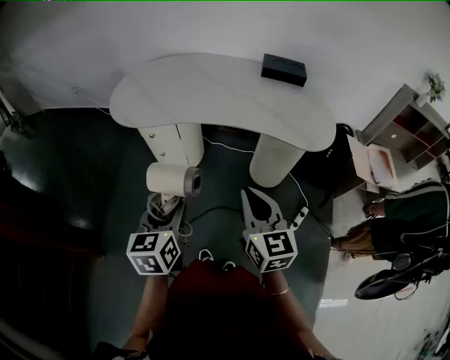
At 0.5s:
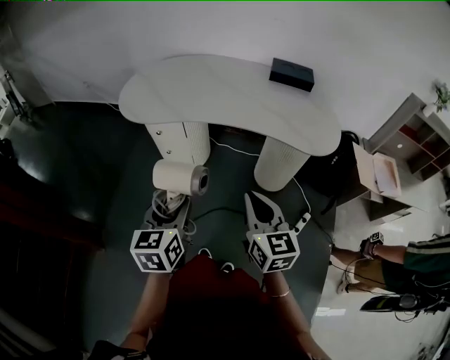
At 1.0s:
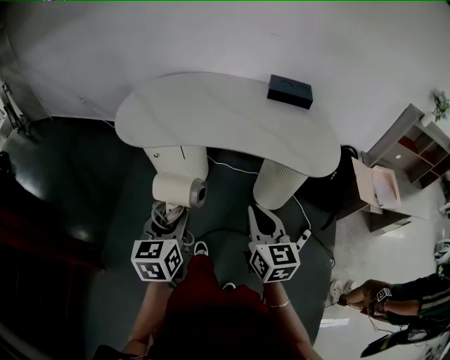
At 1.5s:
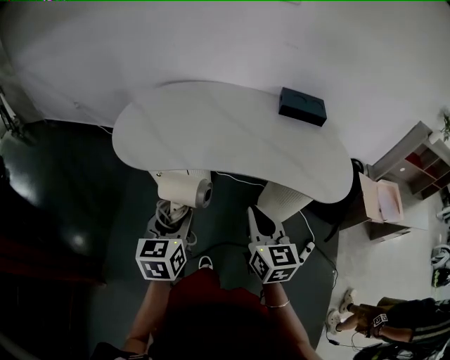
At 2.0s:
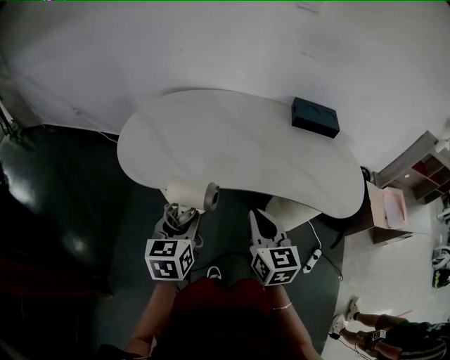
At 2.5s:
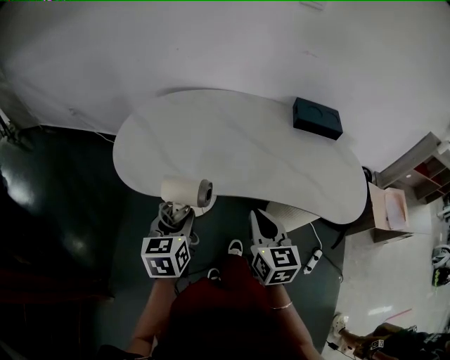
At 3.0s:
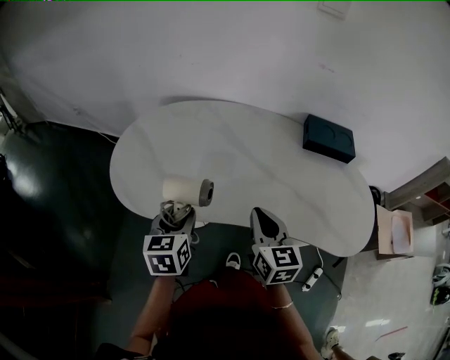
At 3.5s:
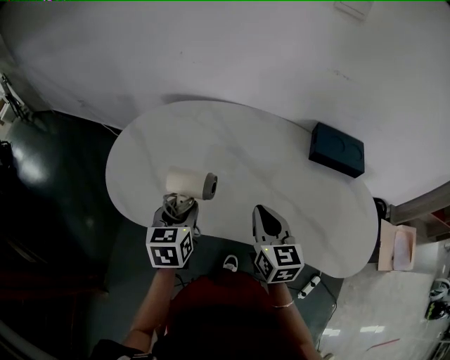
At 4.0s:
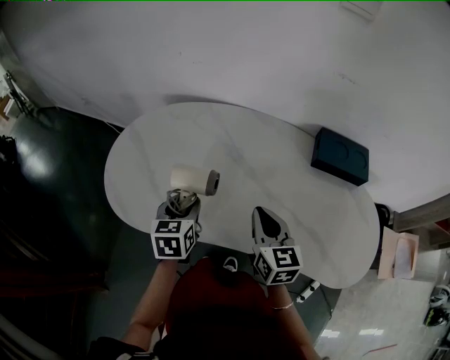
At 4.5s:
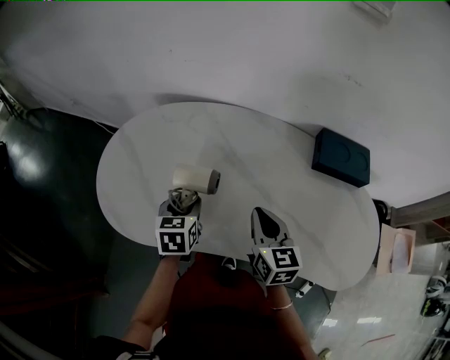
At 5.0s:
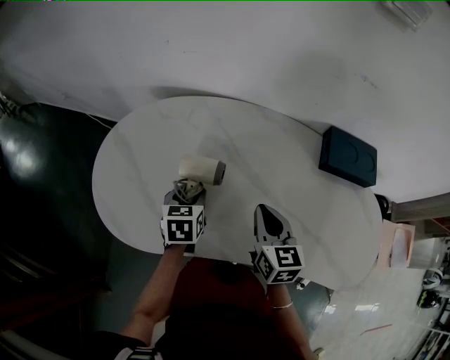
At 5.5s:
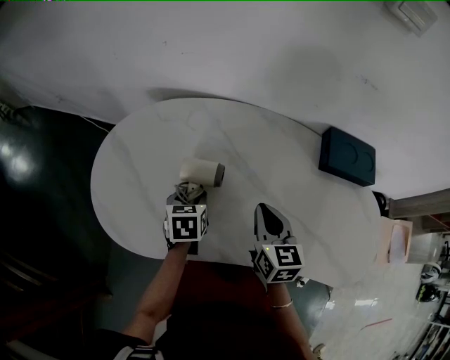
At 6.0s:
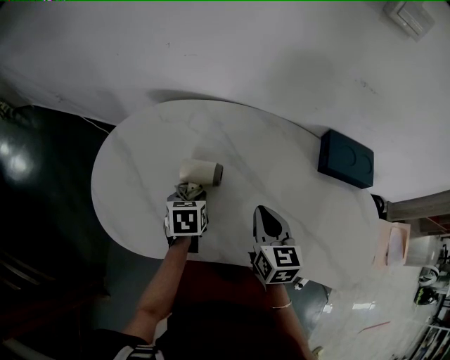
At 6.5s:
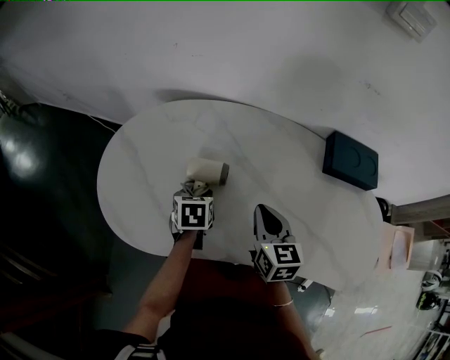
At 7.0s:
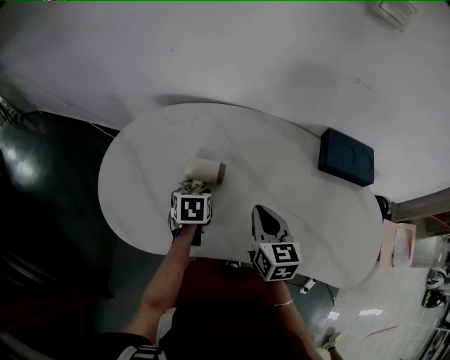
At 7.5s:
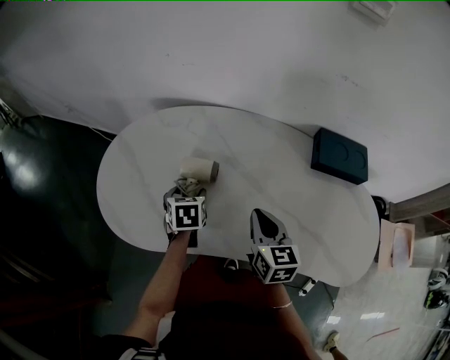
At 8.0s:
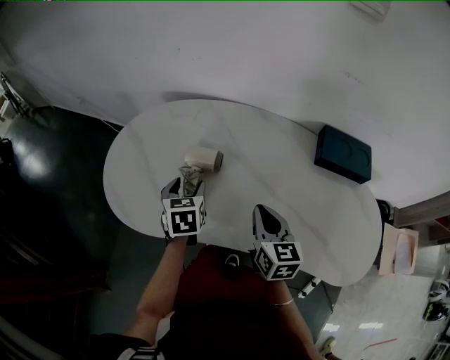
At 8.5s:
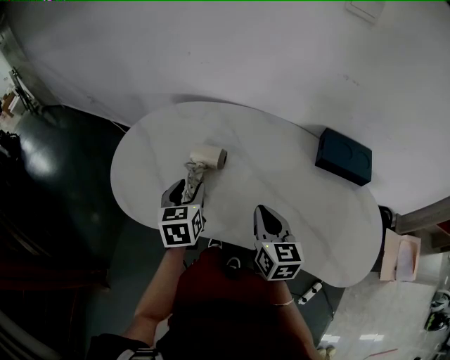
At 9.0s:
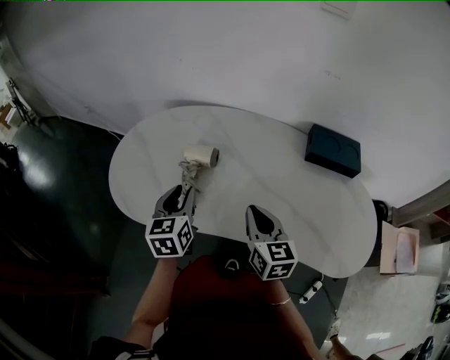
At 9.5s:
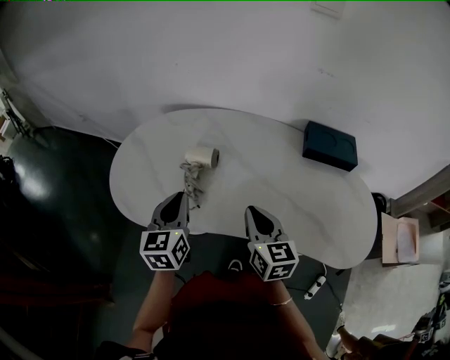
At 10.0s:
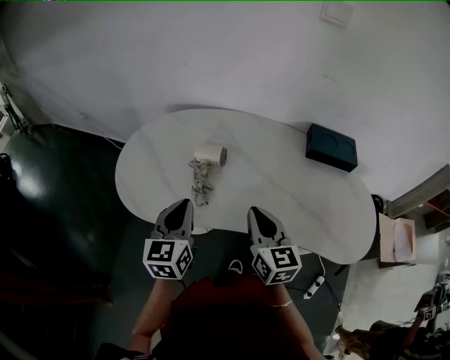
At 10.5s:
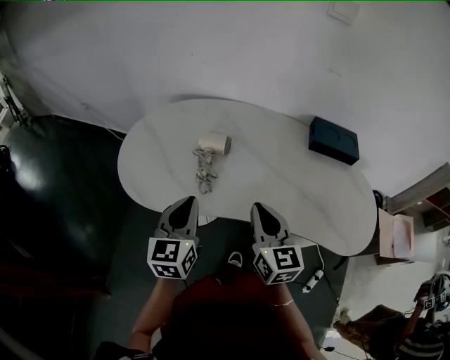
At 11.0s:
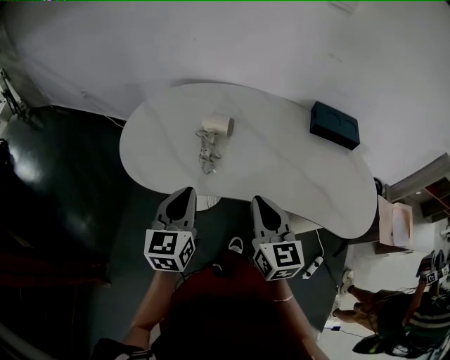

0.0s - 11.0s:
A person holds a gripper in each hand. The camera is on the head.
0.0s - 2.0s: The two grippers go approximately 25 cm forward.
2.0s - 3.5s: The grippers both shift forward by about 20 cm.
3.5s - 5.5s: The right gripper goes approximately 10 cm forward. Meanwhile the left gripper heads forward and downward, covering approximately 15 cm.
5.5s - 7.5s: The grippers make only small movements.
7.5s - 9.0s: The right gripper heads backward, covering about 5 cm, while the left gripper travels upward and backward by some 15 cm, swivels some 30 degrees, and closes its fingers.
9.0s - 11.0s: Both grippers move backward and to the left, some 15 cm. The left gripper closes its fingers.

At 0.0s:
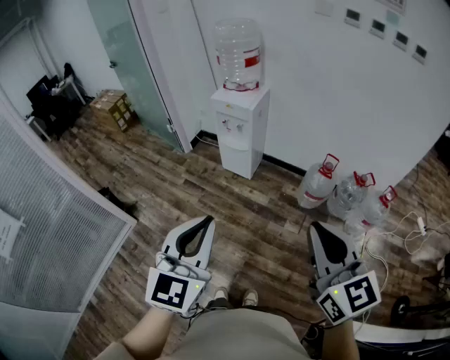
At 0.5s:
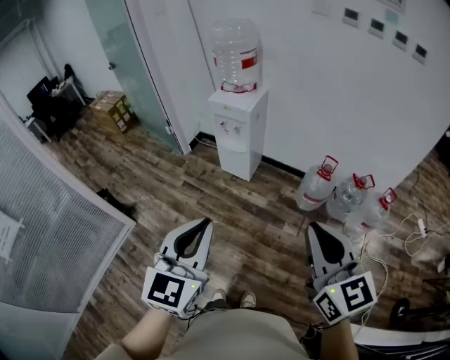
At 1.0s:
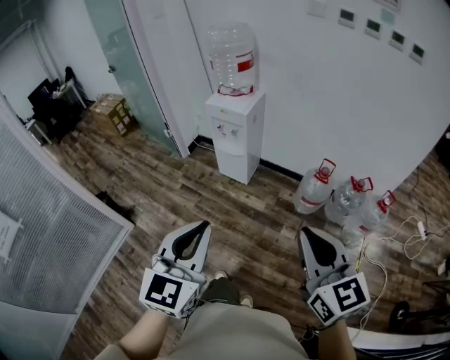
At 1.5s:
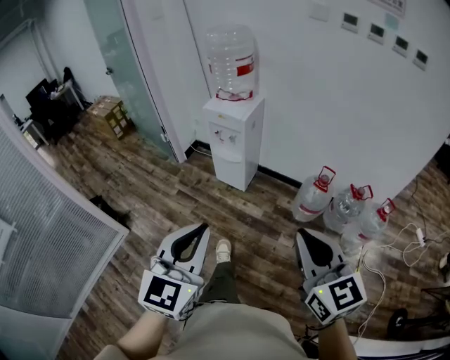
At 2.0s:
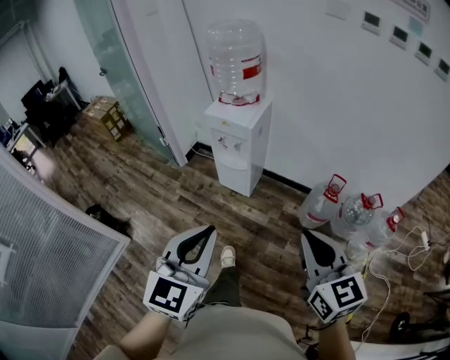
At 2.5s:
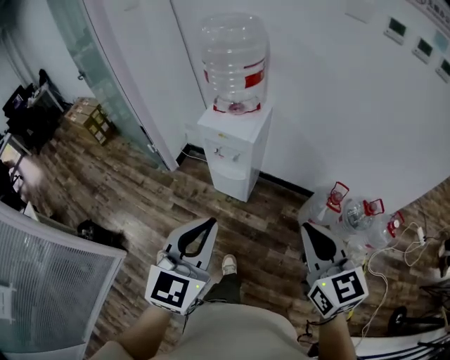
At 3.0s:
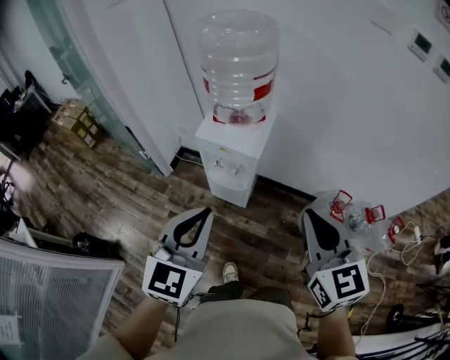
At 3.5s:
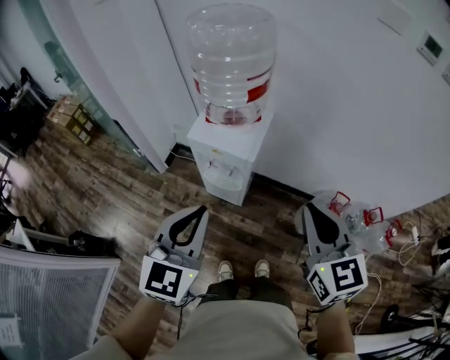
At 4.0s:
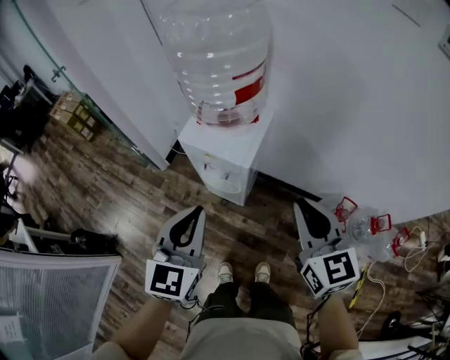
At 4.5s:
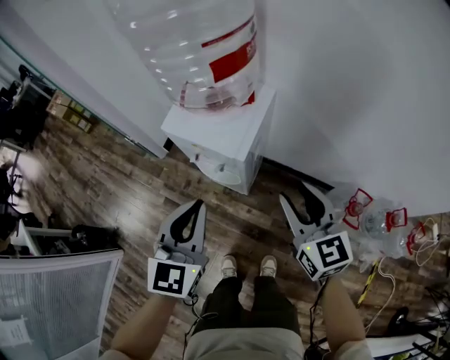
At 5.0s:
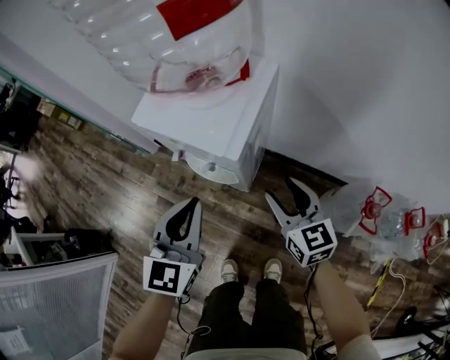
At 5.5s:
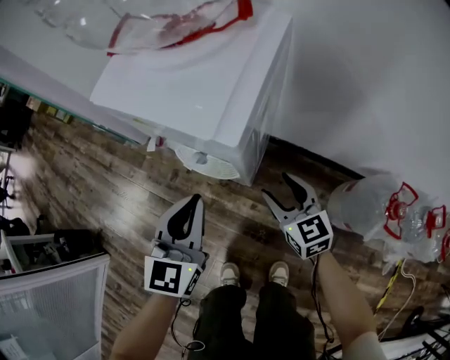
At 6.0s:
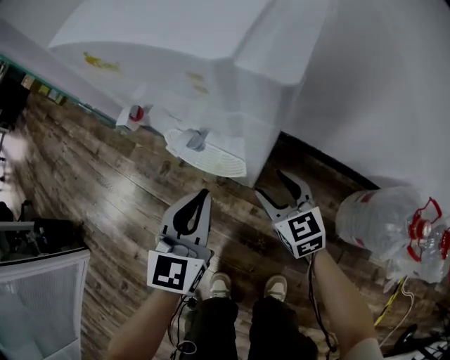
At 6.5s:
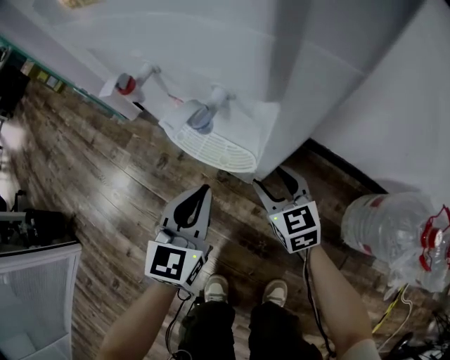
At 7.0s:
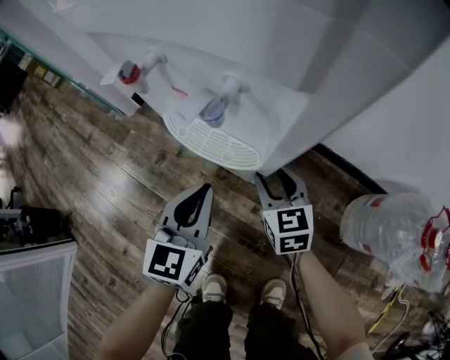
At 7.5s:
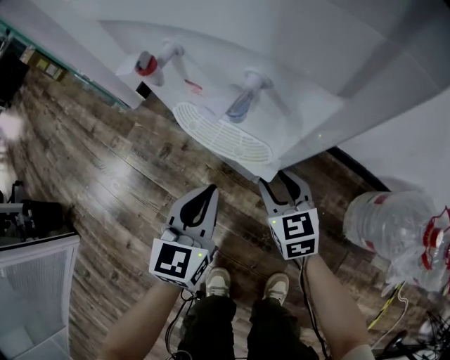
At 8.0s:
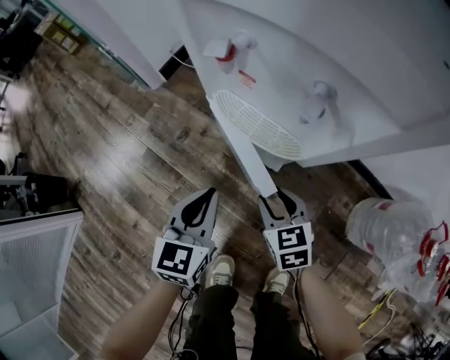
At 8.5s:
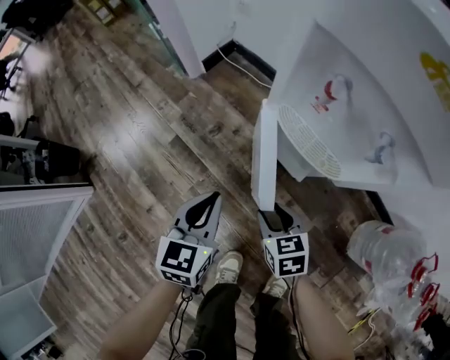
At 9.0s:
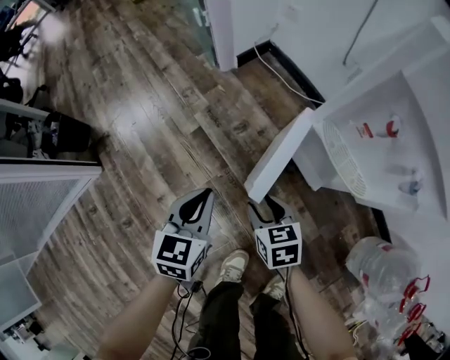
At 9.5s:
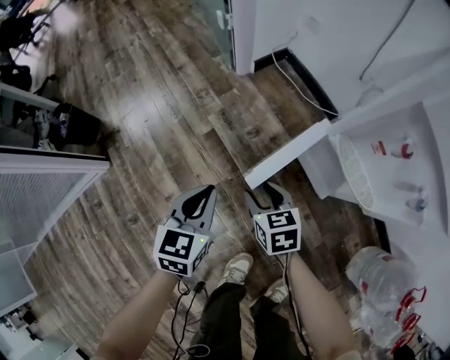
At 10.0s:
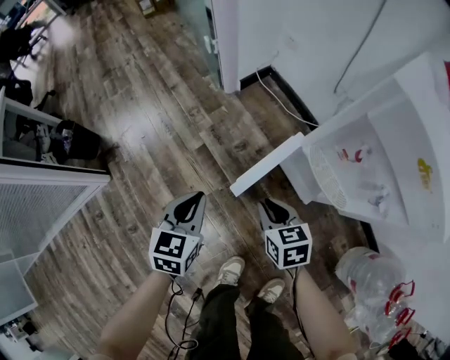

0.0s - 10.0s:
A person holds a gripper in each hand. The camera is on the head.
0.0s - 2.0s: The right gripper shifts about 20 cm forward and downward; the left gripper shifts approximately 15 cm forward.
2.0s - 4.0s: The two grippers travel together, forward, approximately 40 cm.
4.0s - 6.0s: Both grippers travel together downward, some 60 cm. The right gripper turns by some 20 degrees, and opens up.
6.0s - 8.0s: The left gripper heads to the left and downward, covering about 15 cm. Meanwhile the right gripper moves to the left, downward and backward, approximately 15 cm.
8.0s - 10.0s: The right gripper heads to the left, upward and forward, covering about 25 cm, and closes up. Meanwhile the left gripper moves to the left, roughly 25 cm, and turns by some 20 degrees.

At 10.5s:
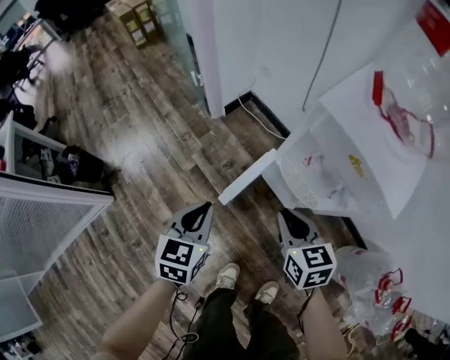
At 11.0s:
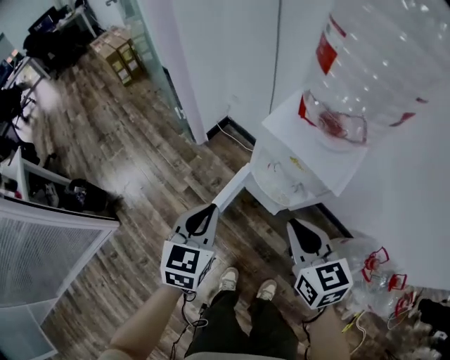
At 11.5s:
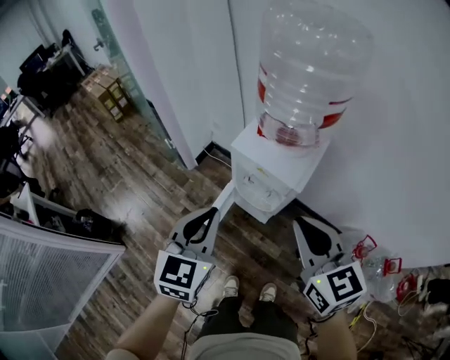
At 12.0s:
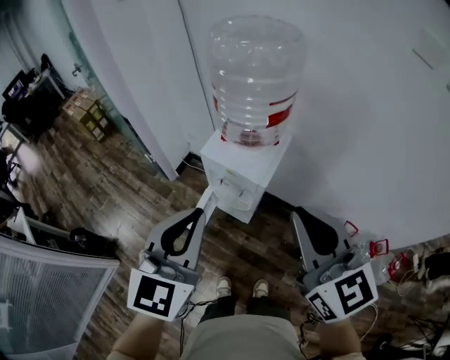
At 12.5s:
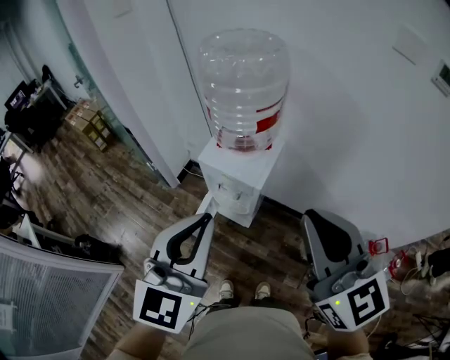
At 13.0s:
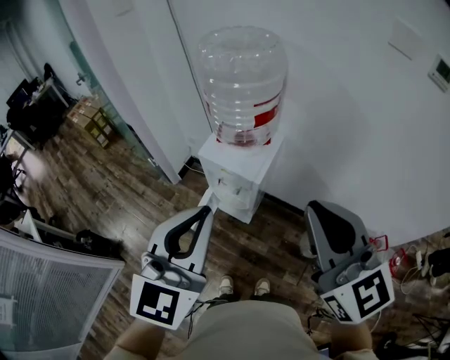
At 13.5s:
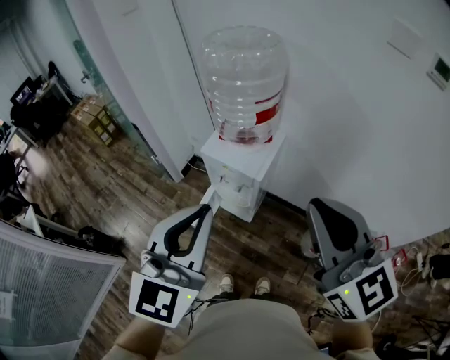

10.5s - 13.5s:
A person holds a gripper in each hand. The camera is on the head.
10.5s - 12.0s: The grippers both shift upward by approximately 50 cm. The left gripper turns by some 40 degrees. Meanwhile the right gripper rotates about 40 degrees.
12.0s - 13.5s: The grippers both shift upward and backward by some 10 cm.

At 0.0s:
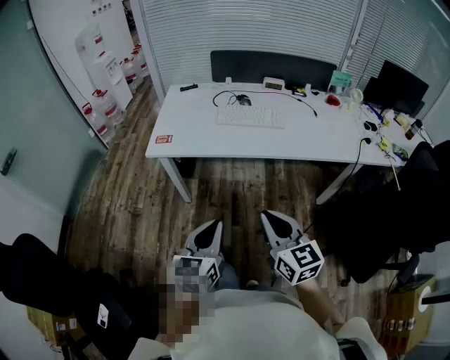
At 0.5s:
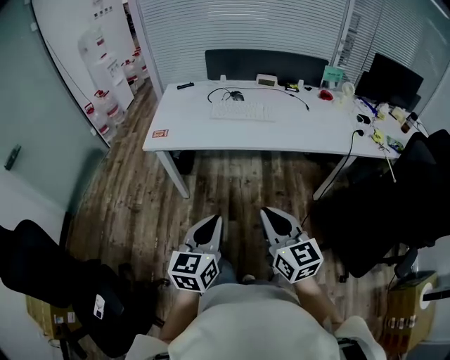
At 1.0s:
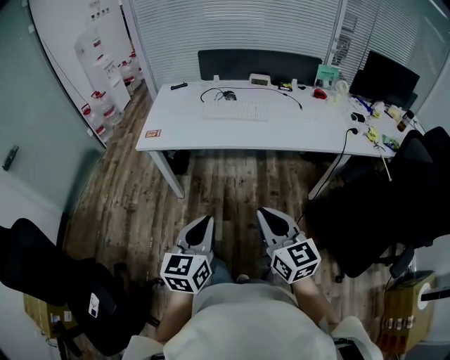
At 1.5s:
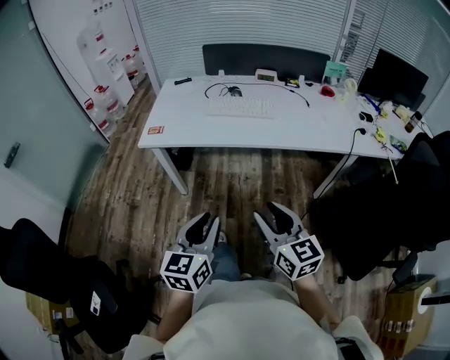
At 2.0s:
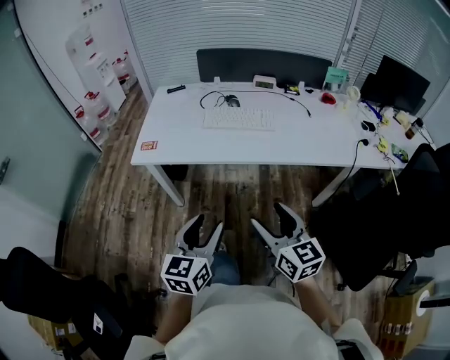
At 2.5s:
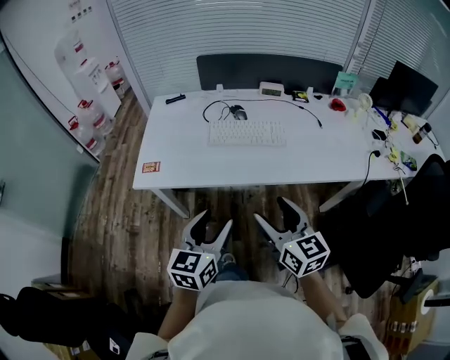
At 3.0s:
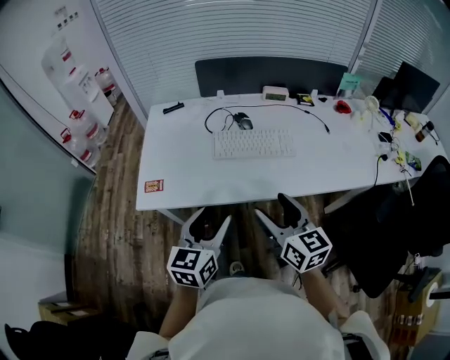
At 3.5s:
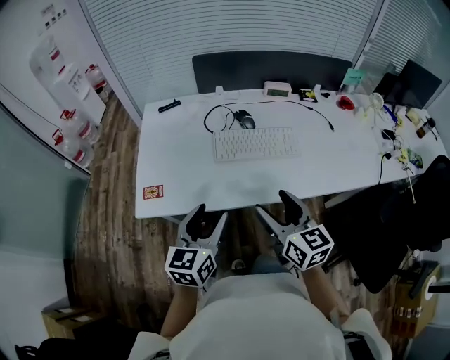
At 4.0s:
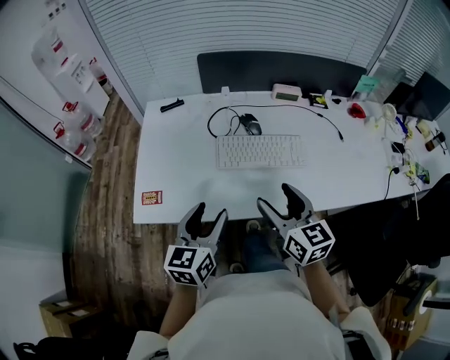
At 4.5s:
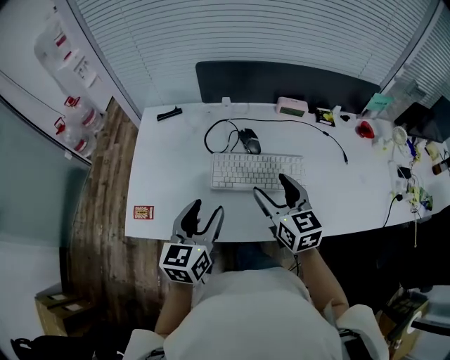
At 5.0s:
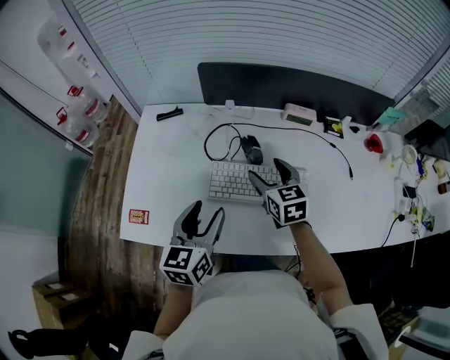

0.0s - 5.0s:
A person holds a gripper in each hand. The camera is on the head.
0.0s - 2.5s: The grippers both shift forward by some 20 cm. The left gripper opens up; the right gripper opens its fingers.
2.5s - 5.0s: Both grippers travel together forward, about 40 cm.
